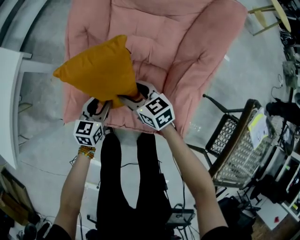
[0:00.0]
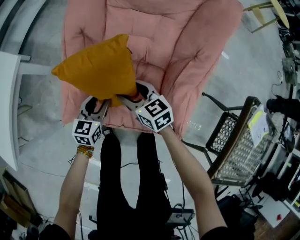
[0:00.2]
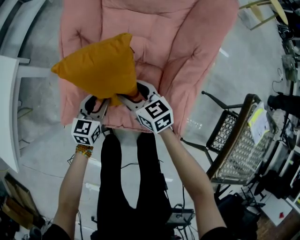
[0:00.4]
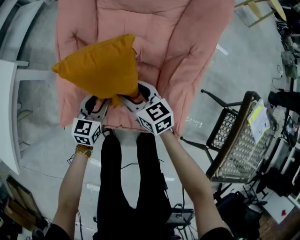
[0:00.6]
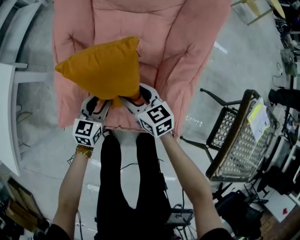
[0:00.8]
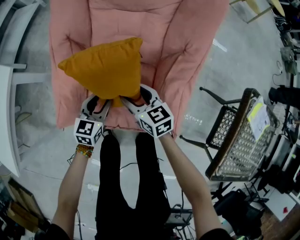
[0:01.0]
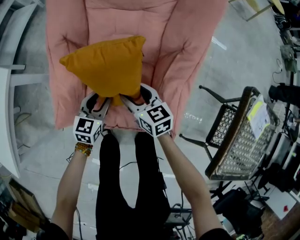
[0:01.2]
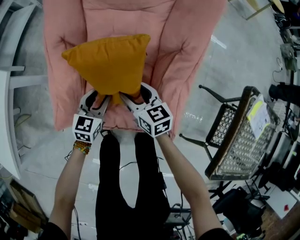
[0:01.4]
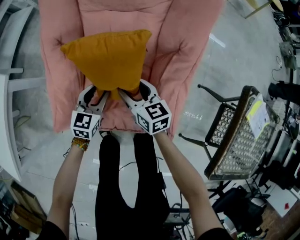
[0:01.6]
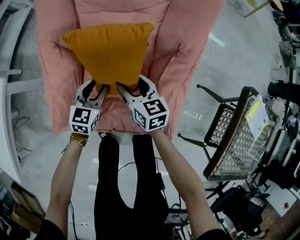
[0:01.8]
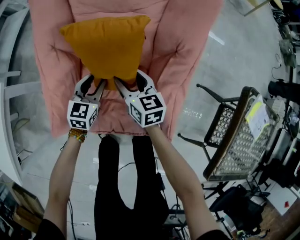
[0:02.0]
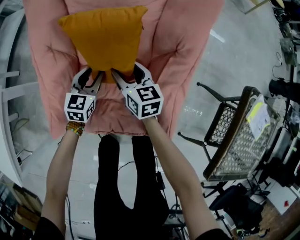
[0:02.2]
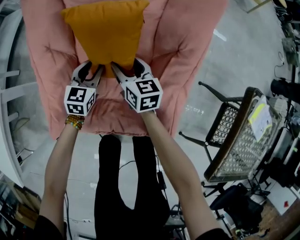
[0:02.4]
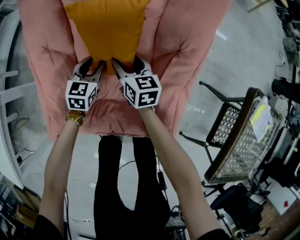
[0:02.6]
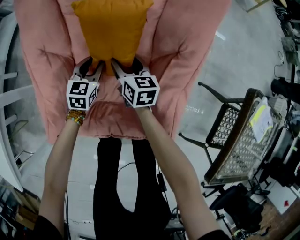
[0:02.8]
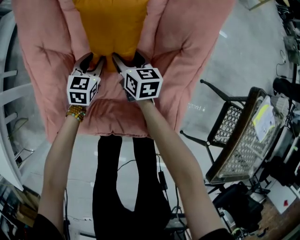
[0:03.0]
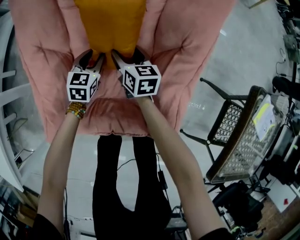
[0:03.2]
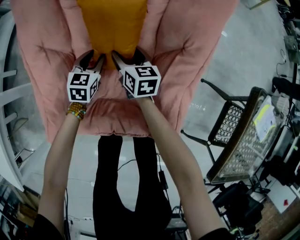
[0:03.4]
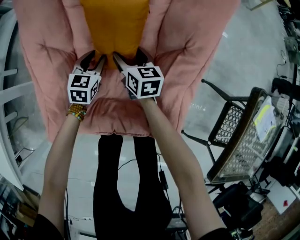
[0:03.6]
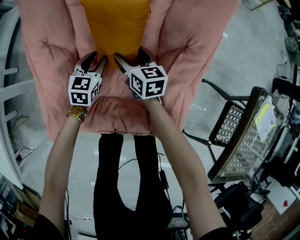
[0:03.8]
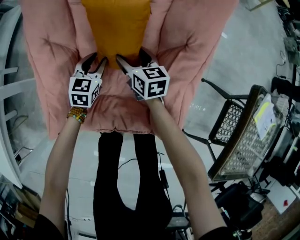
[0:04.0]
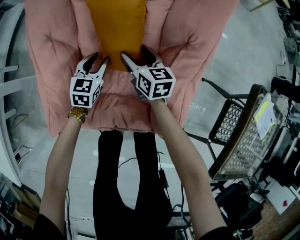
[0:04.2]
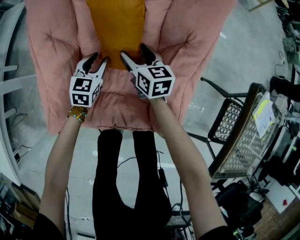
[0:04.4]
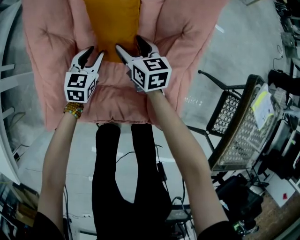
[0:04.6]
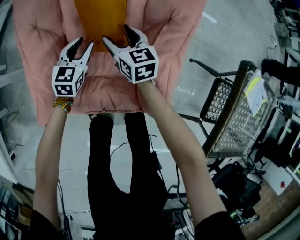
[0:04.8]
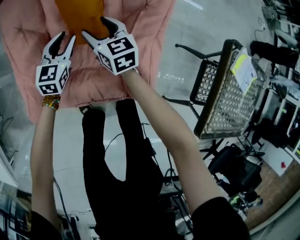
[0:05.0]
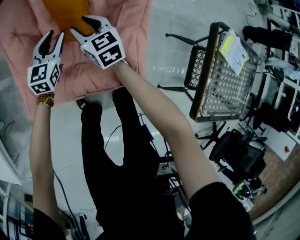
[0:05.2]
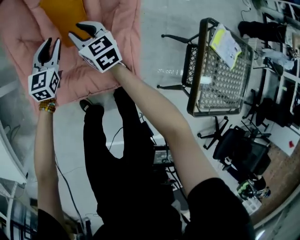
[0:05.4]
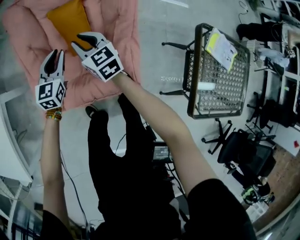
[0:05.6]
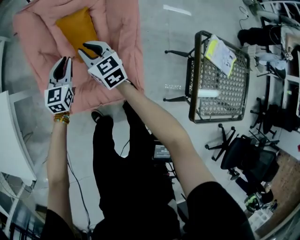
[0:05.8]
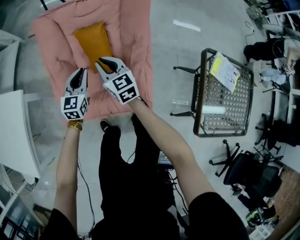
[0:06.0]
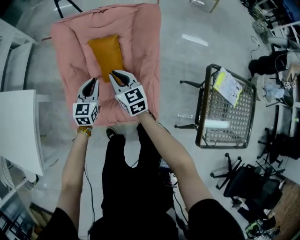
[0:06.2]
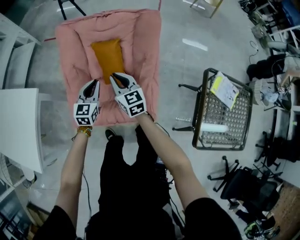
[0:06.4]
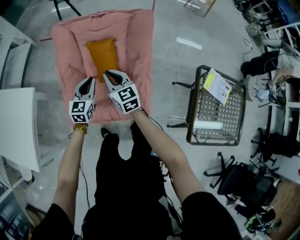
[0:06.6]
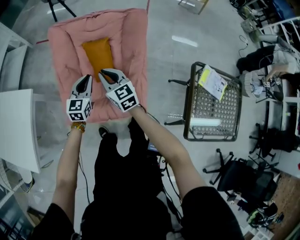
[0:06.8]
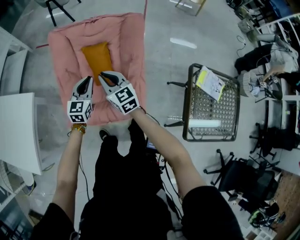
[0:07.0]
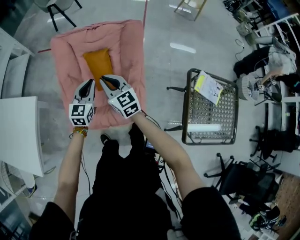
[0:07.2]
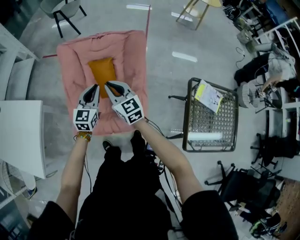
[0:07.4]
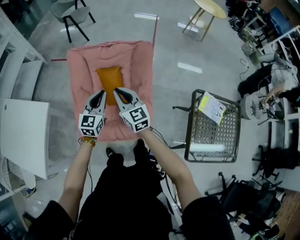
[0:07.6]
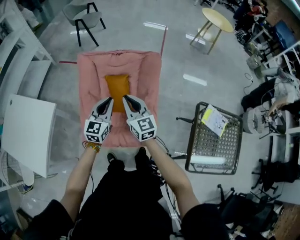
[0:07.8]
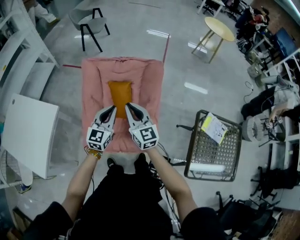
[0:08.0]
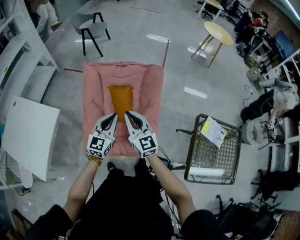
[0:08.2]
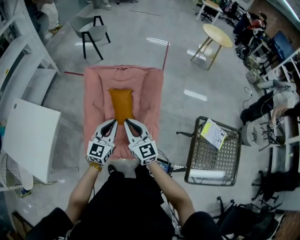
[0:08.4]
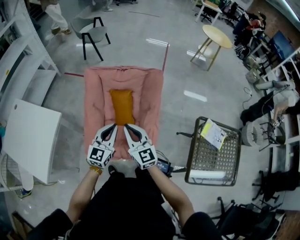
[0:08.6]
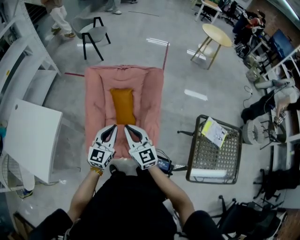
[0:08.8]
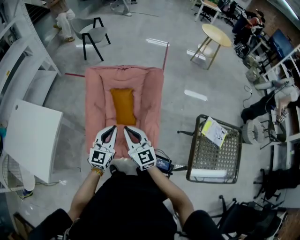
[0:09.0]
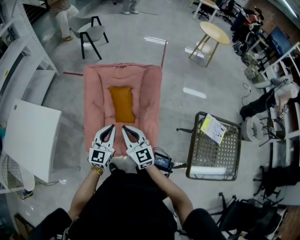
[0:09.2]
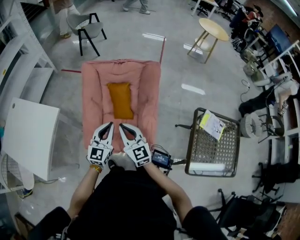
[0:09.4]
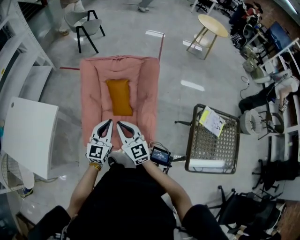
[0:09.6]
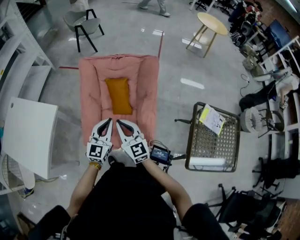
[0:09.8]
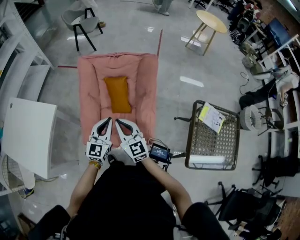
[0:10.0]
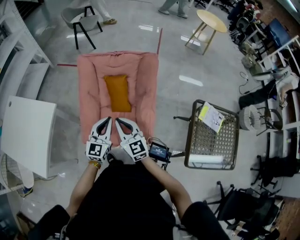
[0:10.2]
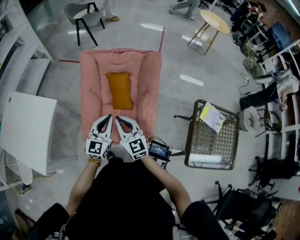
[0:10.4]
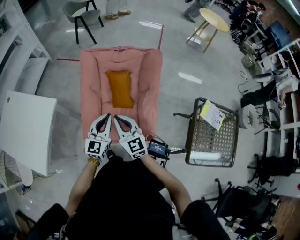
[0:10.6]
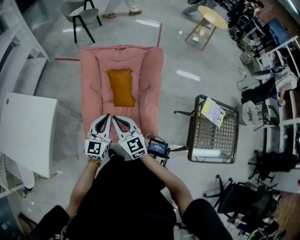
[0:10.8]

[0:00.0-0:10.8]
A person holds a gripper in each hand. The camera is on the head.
0:00.0 to 0:01.6: The right gripper goes roughly 10 cm to the right, and swivels about 20 degrees. Meanwhile the left gripper travels to the right and forward by approximately 10 cm.
0:01.6 to 0:03.0: The grippers both shift forward and downward by roughly 15 cm.
0:03.0 to 0:04.6: The left gripper changes place by some 5 cm.
0:04.6 to 0:06.2: The left gripper is displaced upward by some 25 cm, and closes up, while the right gripper travels upward and backward by approximately 30 cm, and closes its fingers.
0:06.2 to 0:07.8: The grippers both shift upward by roughly 20 cm.
0:07.8 to 0:09.2: The left gripper moves backward, roughly 10 cm; the right gripper moves backward and to the left, approximately 10 cm.
0:09.2 to 0:10.8: Both grippers travel together to the left, about 10 cm.

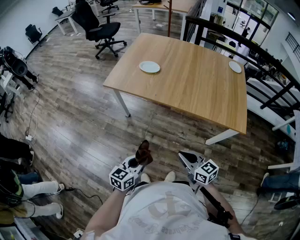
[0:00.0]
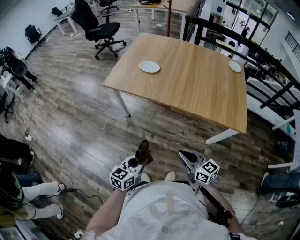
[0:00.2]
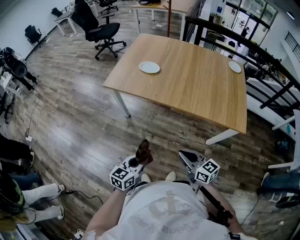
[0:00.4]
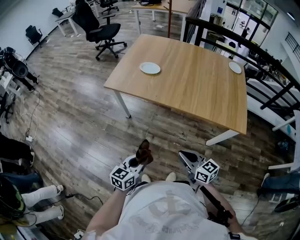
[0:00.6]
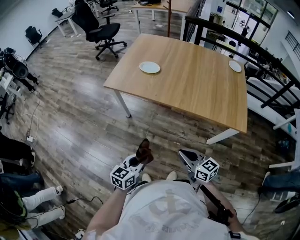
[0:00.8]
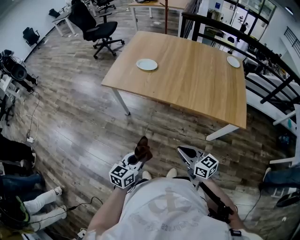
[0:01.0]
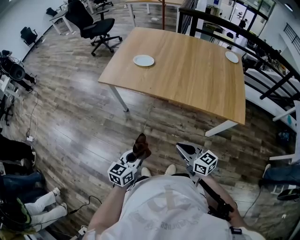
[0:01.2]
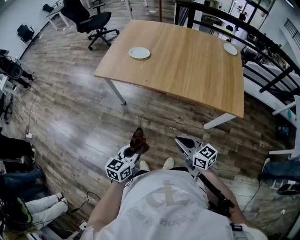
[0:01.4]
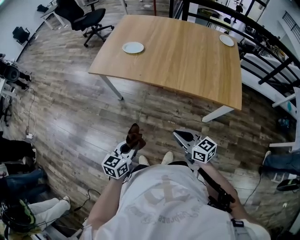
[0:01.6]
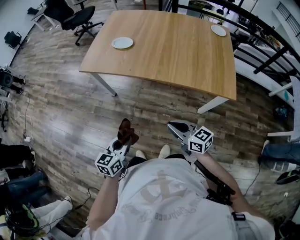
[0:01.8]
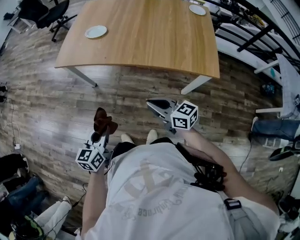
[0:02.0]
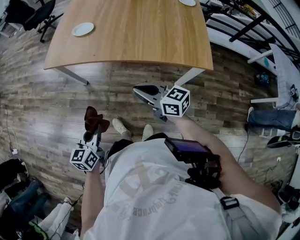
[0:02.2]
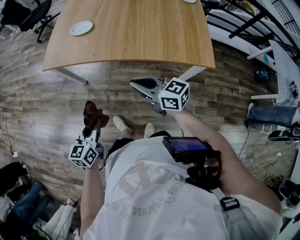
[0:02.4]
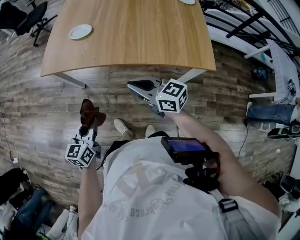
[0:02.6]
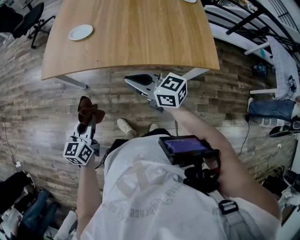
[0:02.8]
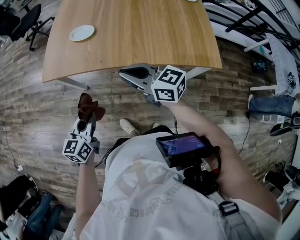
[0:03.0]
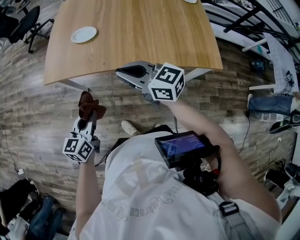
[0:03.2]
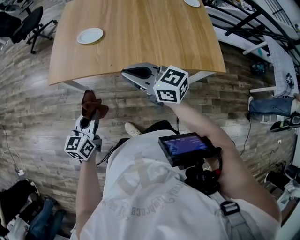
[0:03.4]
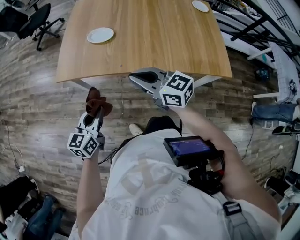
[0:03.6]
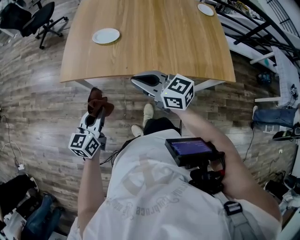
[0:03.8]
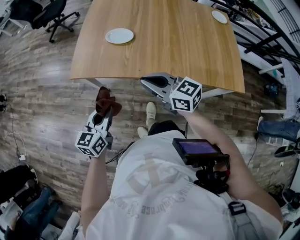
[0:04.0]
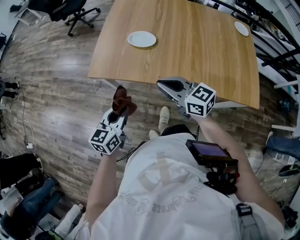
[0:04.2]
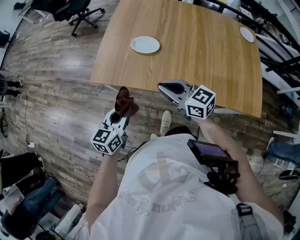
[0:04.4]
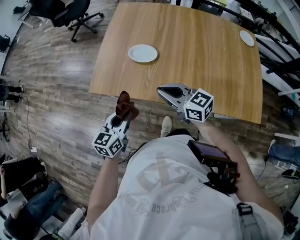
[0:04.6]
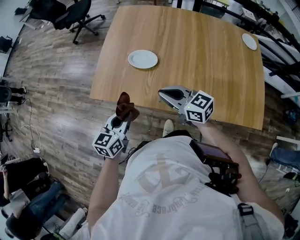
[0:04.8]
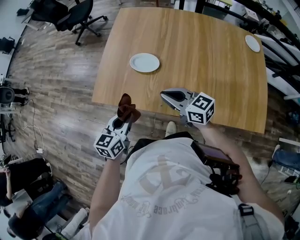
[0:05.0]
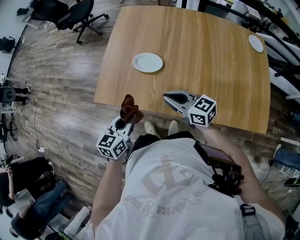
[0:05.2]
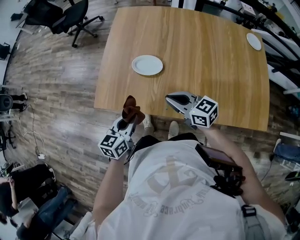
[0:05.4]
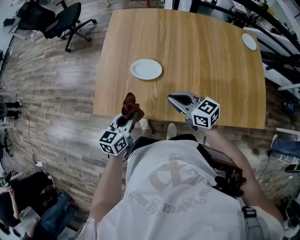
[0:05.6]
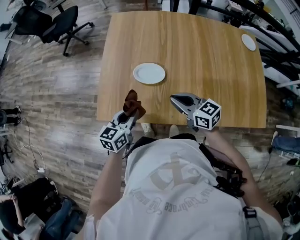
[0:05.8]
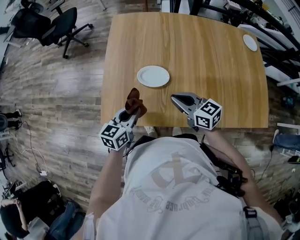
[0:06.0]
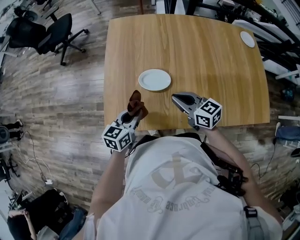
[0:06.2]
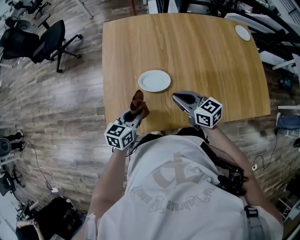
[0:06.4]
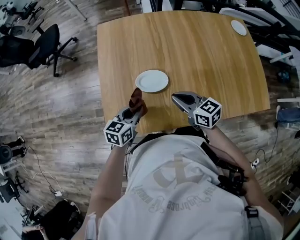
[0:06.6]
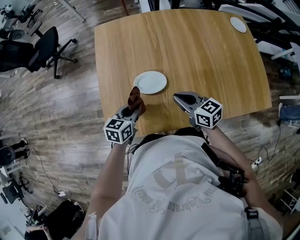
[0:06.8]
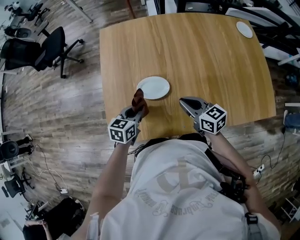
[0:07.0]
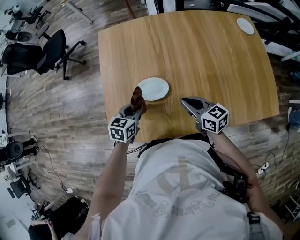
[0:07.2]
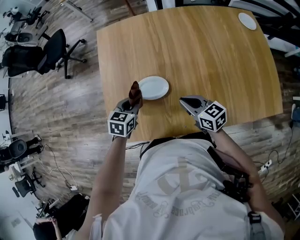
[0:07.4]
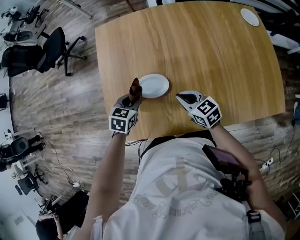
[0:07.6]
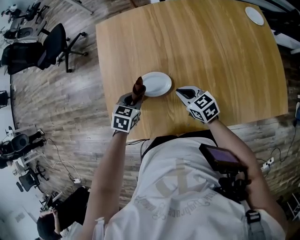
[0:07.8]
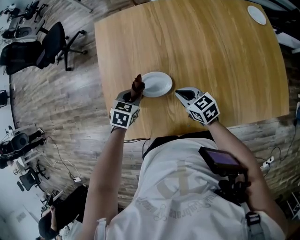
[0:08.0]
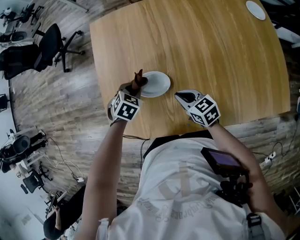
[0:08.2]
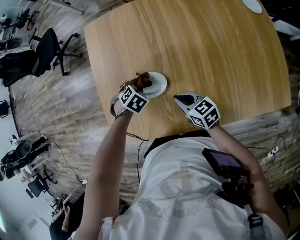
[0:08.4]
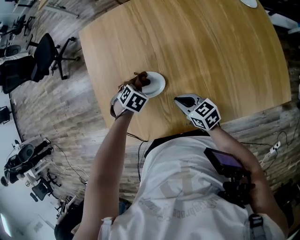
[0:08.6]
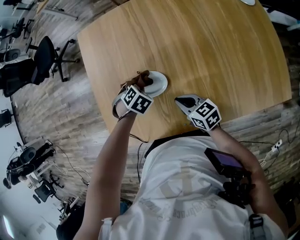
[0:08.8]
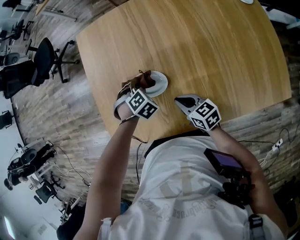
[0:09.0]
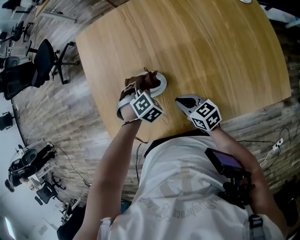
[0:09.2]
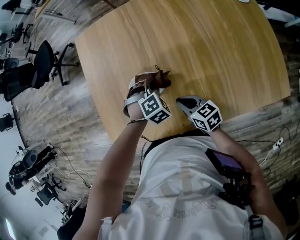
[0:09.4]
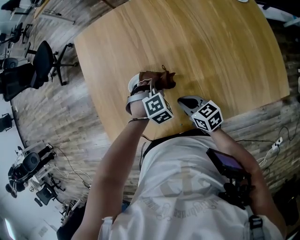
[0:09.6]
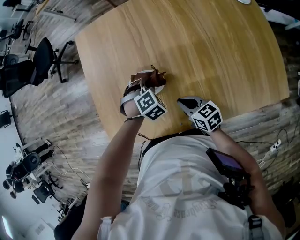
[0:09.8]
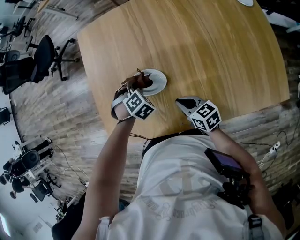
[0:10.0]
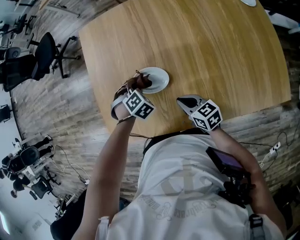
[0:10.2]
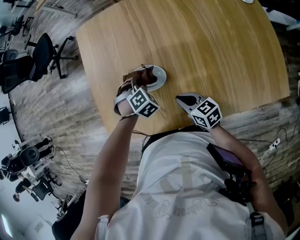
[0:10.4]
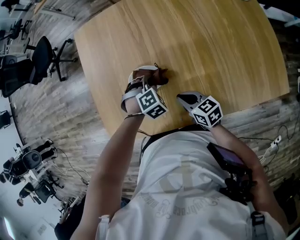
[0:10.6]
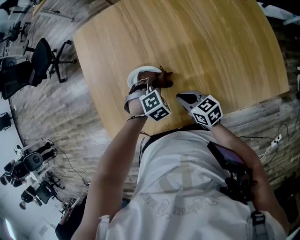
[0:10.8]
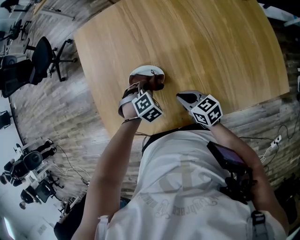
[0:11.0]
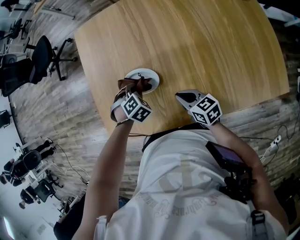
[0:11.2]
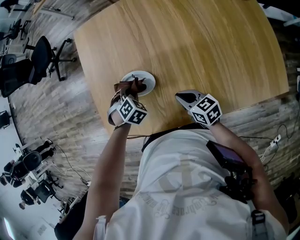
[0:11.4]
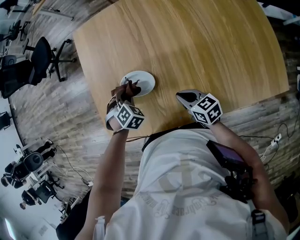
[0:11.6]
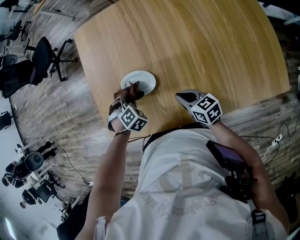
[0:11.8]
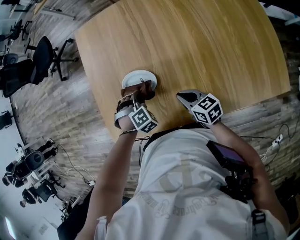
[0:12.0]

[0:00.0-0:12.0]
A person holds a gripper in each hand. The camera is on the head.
0:00.0 to 0:01.6: The grippers stay close to where they were, moving slightly.
0:01.6 to 0:03.0: The left gripper heads forward, covering about 20 cm. Meanwhile the right gripper goes approximately 25 cm forward and upward.
0:03.0 to 0:04.4: The right gripper goes roughly 15 cm forward and to the left. Meanwhile the left gripper goes approximately 15 cm forward.
0:04.4 to 0:06.0: The left gripper is displaced forward by about 20 cm. Meanwhile the right gripper goes some 15 cm forward and downward.
0:06.0 to 0:07.6: The right gripper goes roughly 10 cm downward, forward and to the right. The left gripper moves forward and downward, roughly 15 cm, and turns by approximately 30 degrees.
0:07.6 to 0:09.0: The left gripper moves roughly 10 cm, and rolls clockwise, seen from behind, by roughly 40 degrees, while the right gripper ends up about 5 cm from where it was.
0:09.0 to 0:10.4: The left gripper moves roughly 10 cm to the right and comes back.
0:10.4 to 0:12.0: The left gripper moves left and right over about 15 cm, changing direction 2 times.

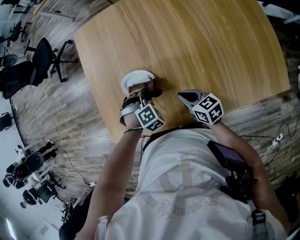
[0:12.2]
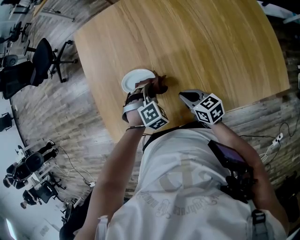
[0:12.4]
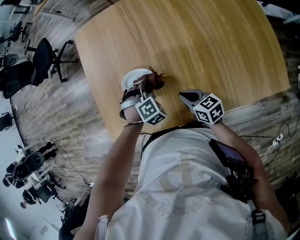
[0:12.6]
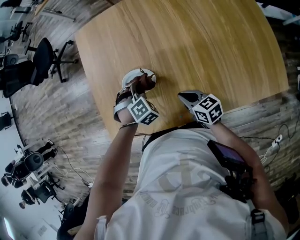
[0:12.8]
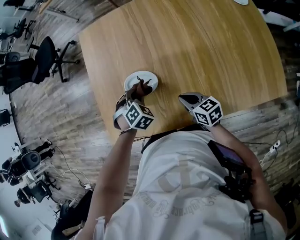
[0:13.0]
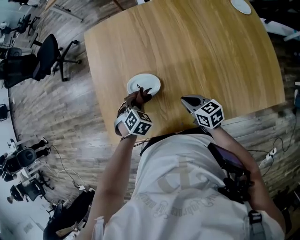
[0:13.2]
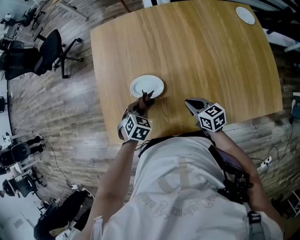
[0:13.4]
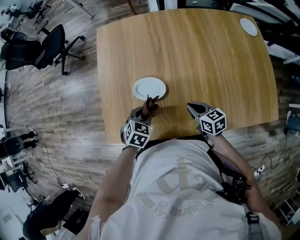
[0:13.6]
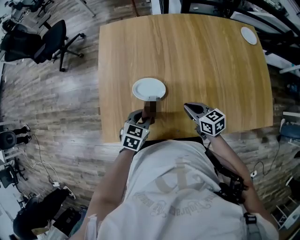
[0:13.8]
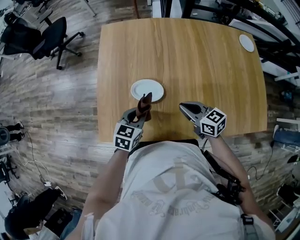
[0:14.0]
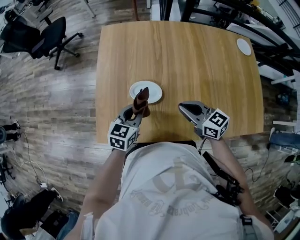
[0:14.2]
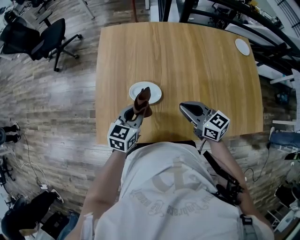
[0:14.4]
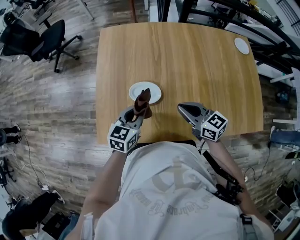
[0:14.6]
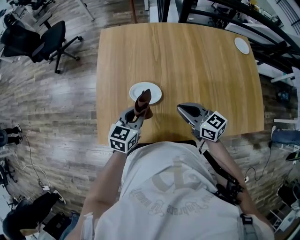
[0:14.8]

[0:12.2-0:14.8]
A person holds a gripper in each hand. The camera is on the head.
0:12.2 to 0:13.4: The left gripper shifts approximately 5 cm to the left, and rotates some 40 degrees.
0:13.4 to 0:14.8: Both grippers move upward, roughly 10 cm. The left gripper tilts its fingers roughly 30 degrees upward. Meanwhile the right gripper rotates approximately 20 degrees.
